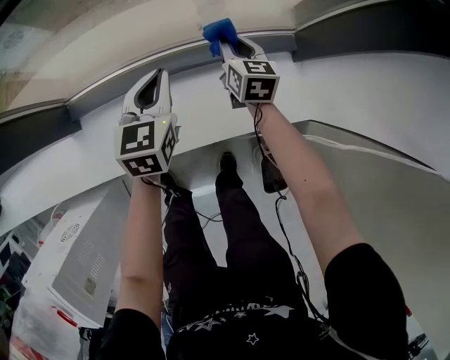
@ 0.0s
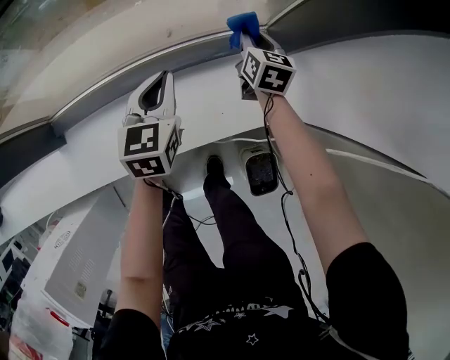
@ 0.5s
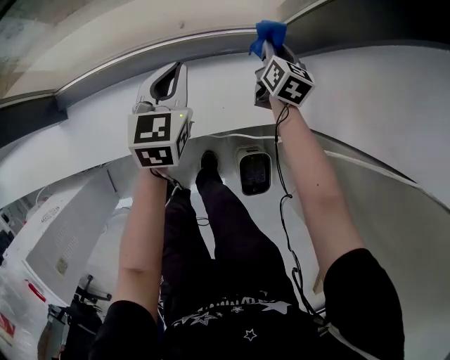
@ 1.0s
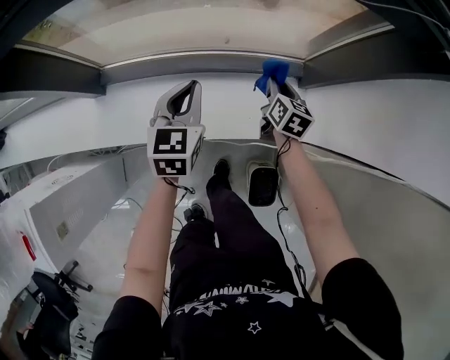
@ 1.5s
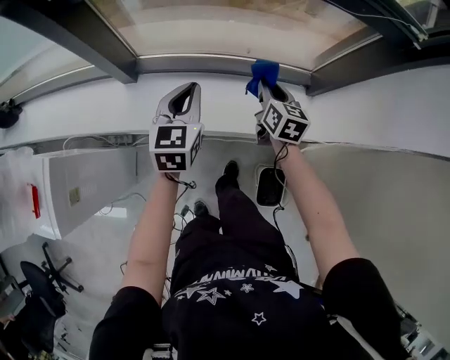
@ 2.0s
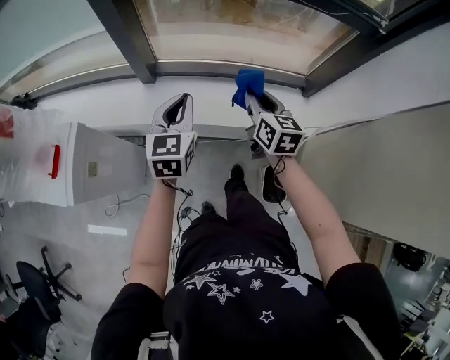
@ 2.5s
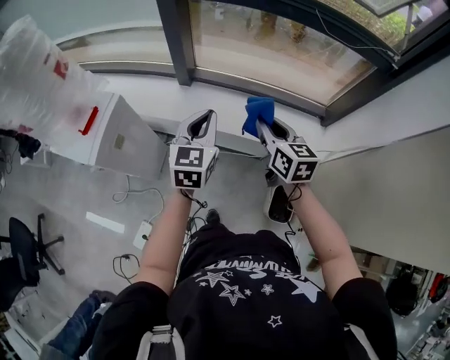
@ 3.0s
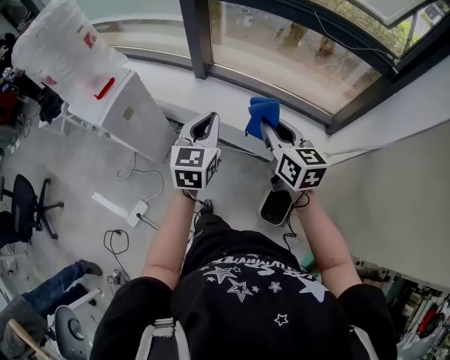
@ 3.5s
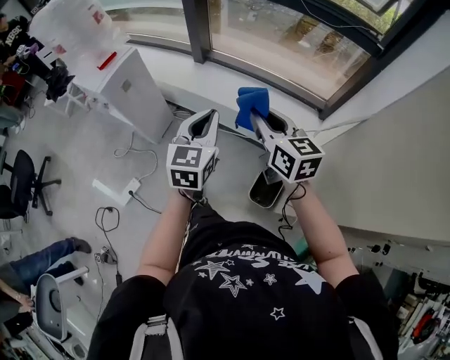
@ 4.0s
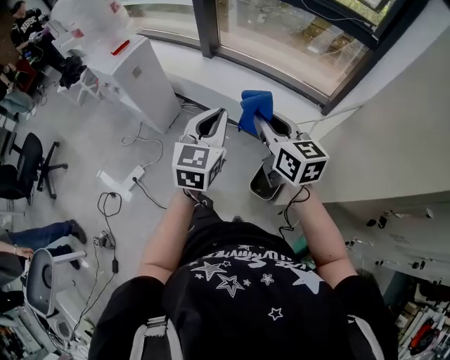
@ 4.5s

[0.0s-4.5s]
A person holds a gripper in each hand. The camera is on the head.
0.0s to 2.0s: Both grippers travel together backward and upward, approximately 25 cm. The right gripper reaches roughly 20 cm to the right, then returns.
2.0s to 4.5s: The two grippers travel together, roughly 50 cm. The left gripper swivels some 20 degrees. The right gripper rotates some 50 degrees.

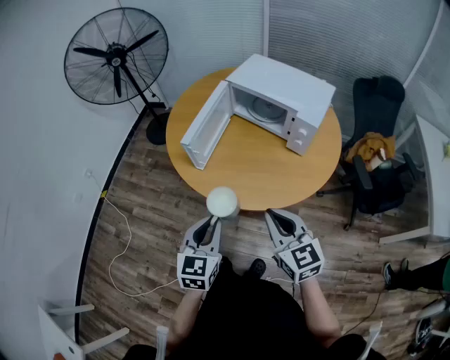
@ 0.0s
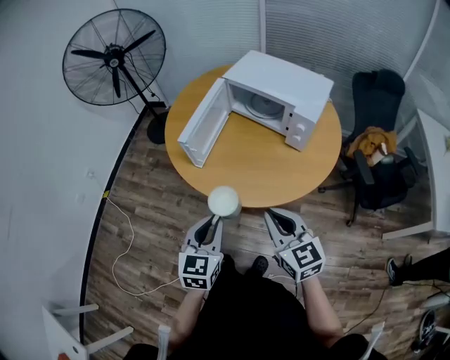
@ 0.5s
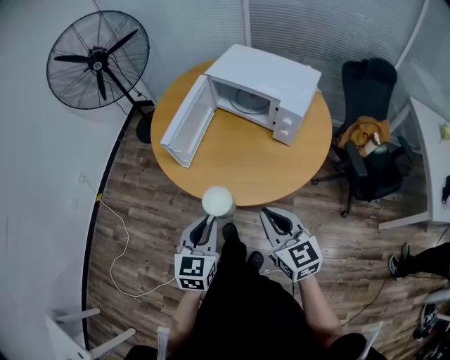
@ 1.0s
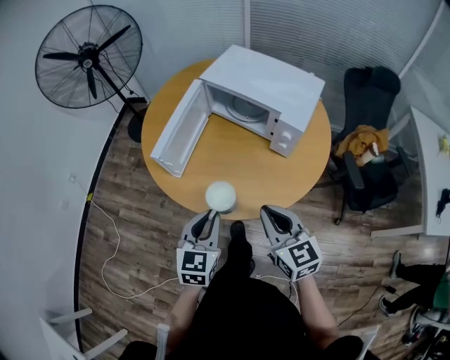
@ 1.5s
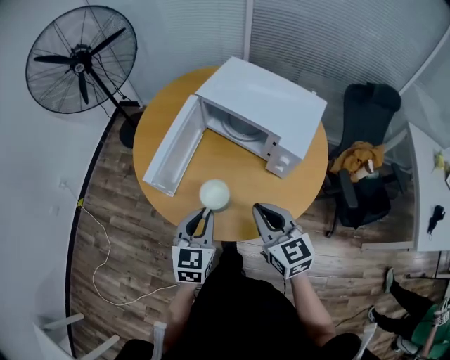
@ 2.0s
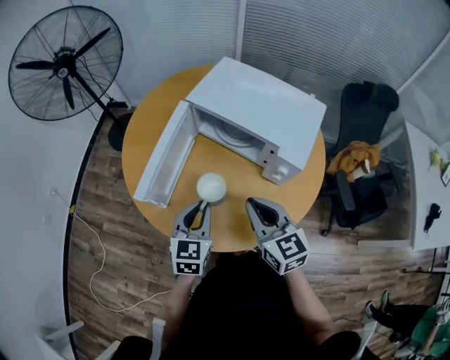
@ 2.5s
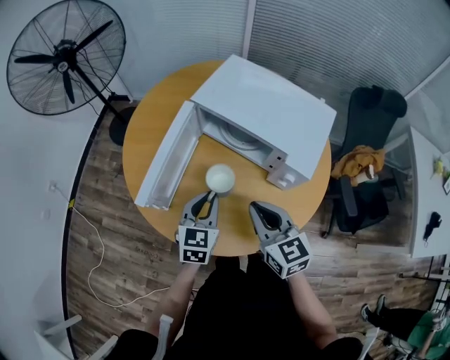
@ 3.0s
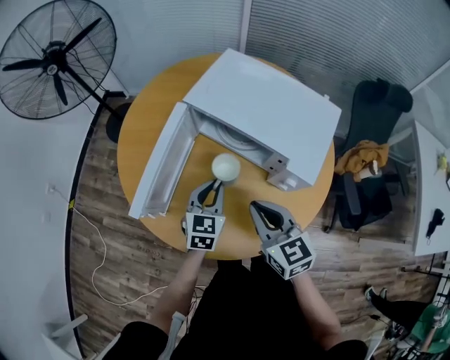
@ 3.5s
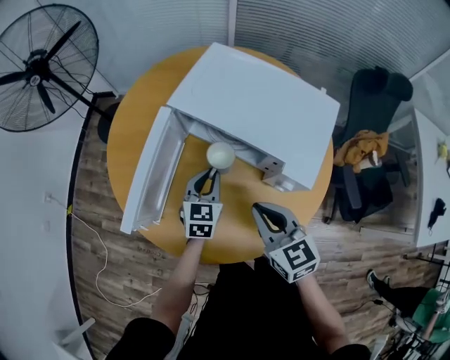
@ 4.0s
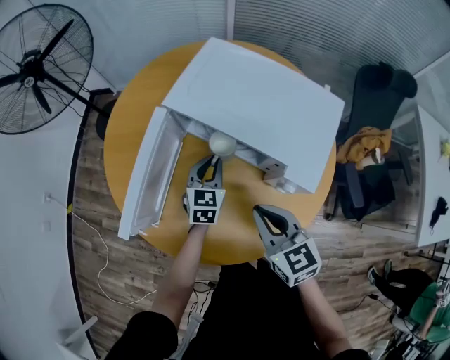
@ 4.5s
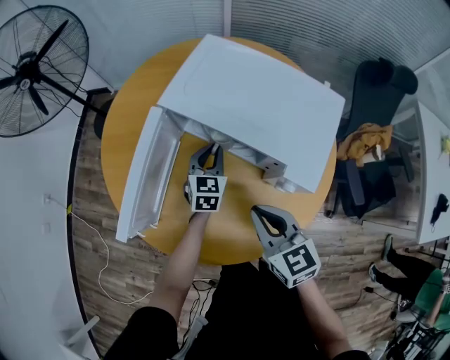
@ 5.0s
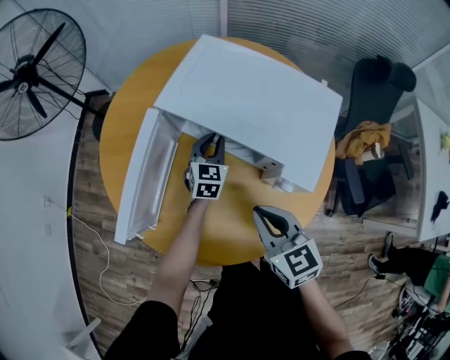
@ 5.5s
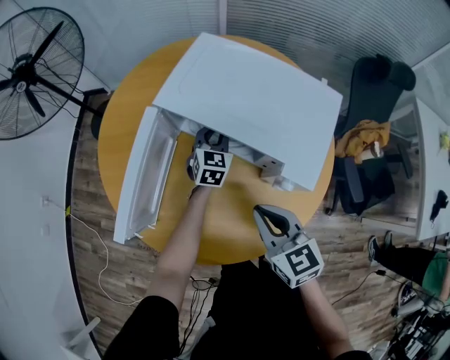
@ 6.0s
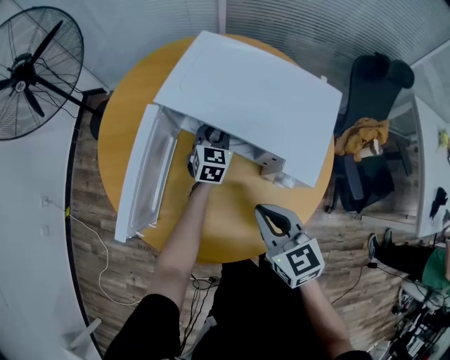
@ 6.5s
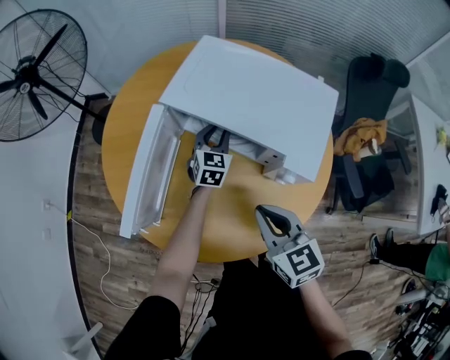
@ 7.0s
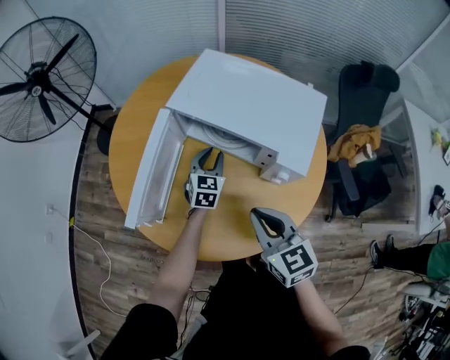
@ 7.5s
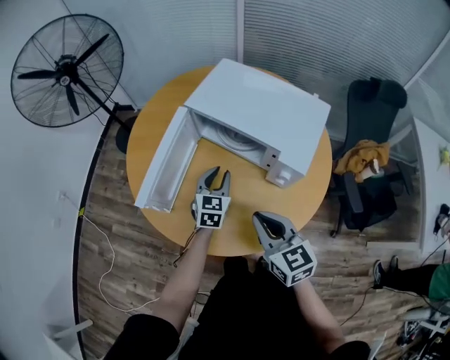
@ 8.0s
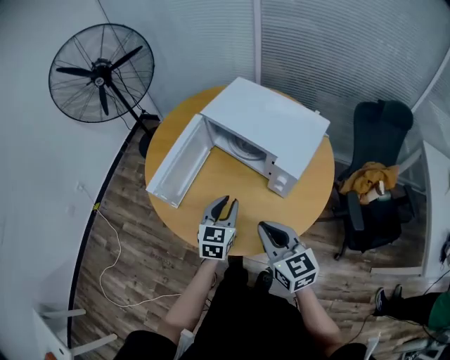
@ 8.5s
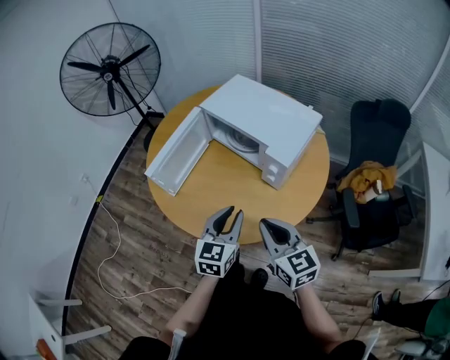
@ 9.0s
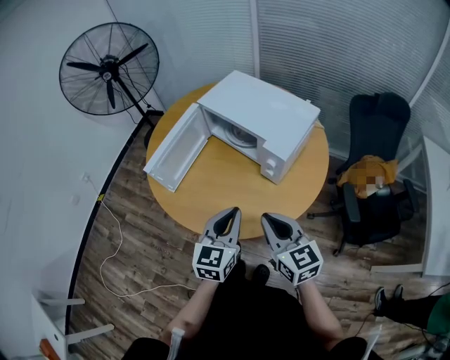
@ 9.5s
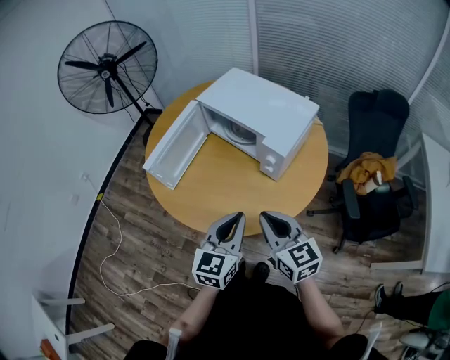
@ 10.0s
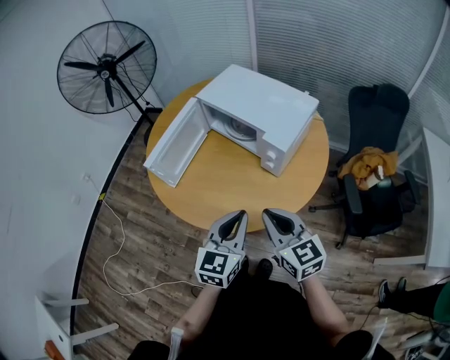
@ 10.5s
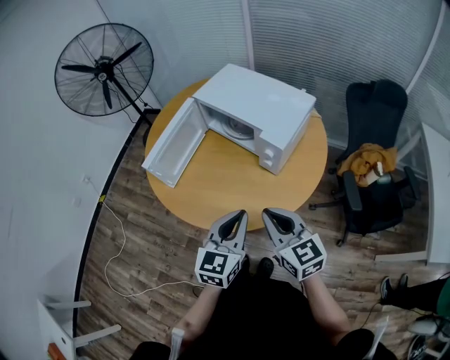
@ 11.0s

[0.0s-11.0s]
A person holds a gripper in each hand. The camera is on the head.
0.0s to 2.0s: Both grippers move forward and to the right, roughly 20 cm.
2.0s to 3.5s: The right gripper goes some 10 cm forward. The left gripper heads forward and downward, covering some 20 cm.
3.5s to 5.5s: The left gripper goes approximately 20 cm forward, to the right and downward.
5.5s to 7.5s: The left gripper moves backward, about 5 cm, while the right gripper ends up some 5 cm from where it was.
7.5s to 9.0s: The right gripper goes about 15 cm backward and to the right, while the left gripper shifts roughly 35 cm backward and upward.
9.0s to 11.0s: The left gripper travels backward by approximately 5 cm.

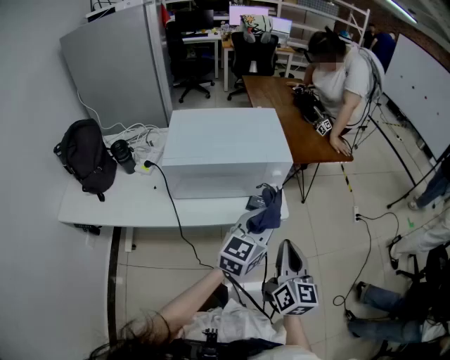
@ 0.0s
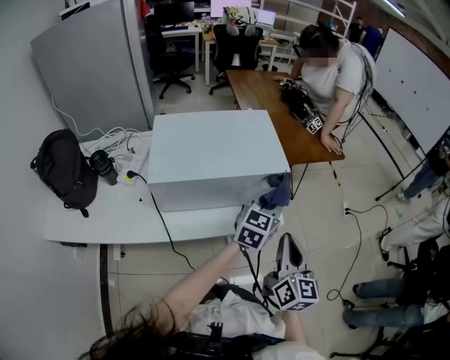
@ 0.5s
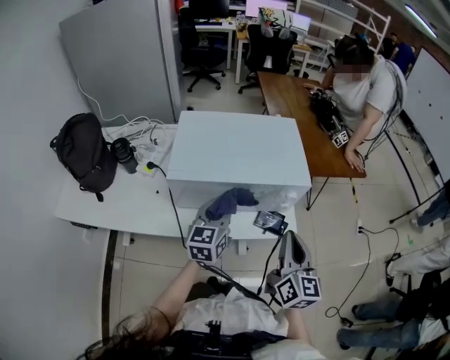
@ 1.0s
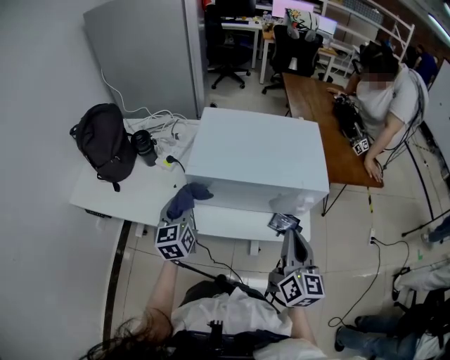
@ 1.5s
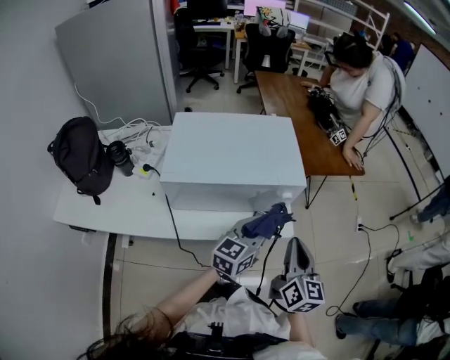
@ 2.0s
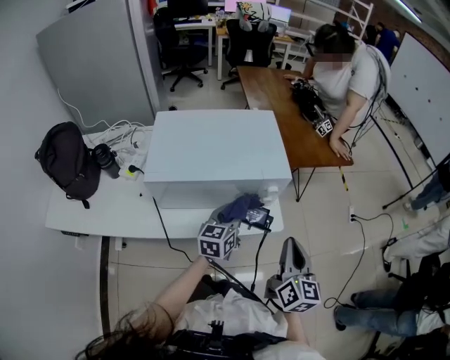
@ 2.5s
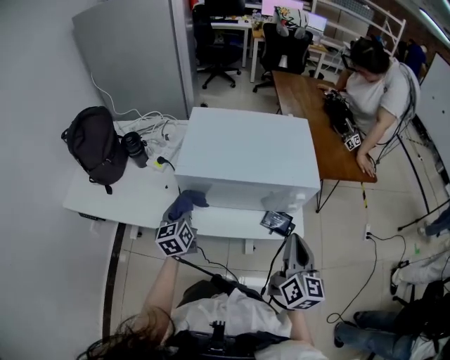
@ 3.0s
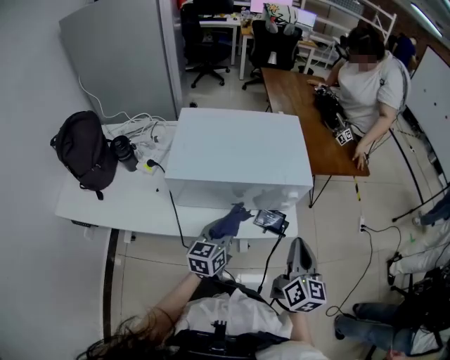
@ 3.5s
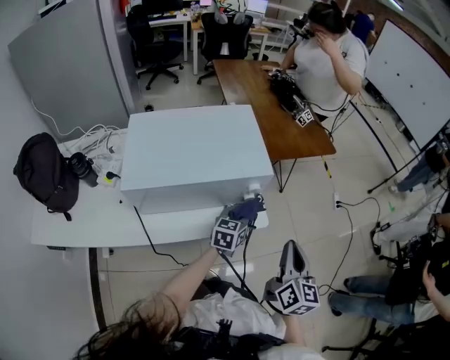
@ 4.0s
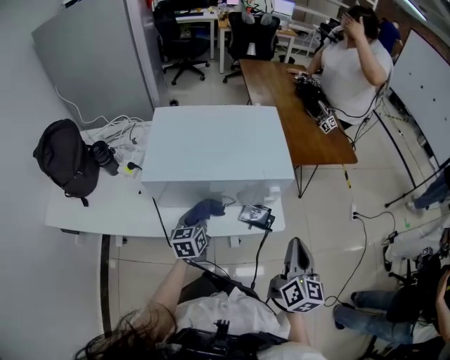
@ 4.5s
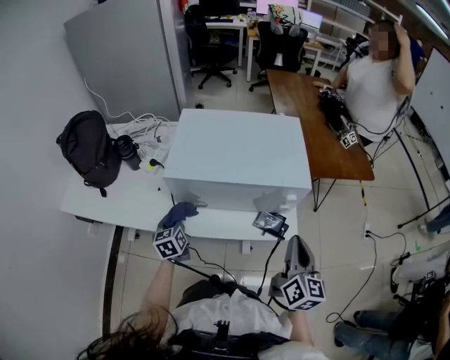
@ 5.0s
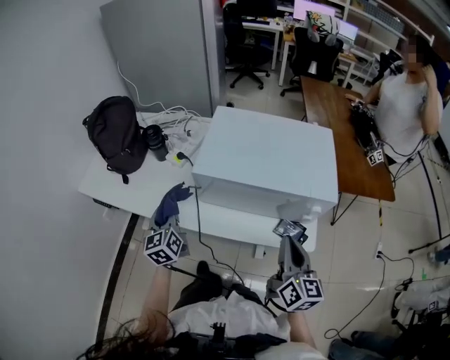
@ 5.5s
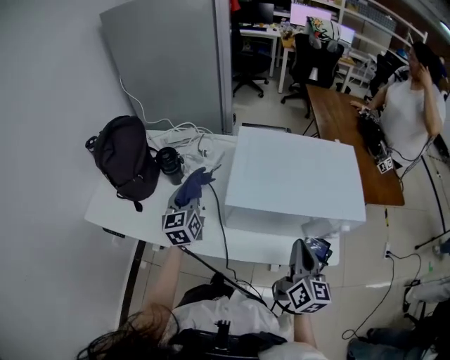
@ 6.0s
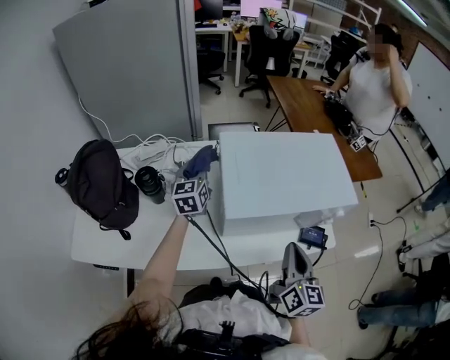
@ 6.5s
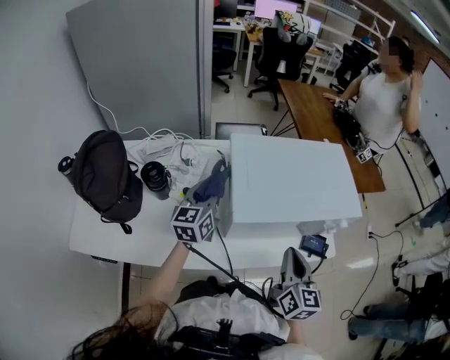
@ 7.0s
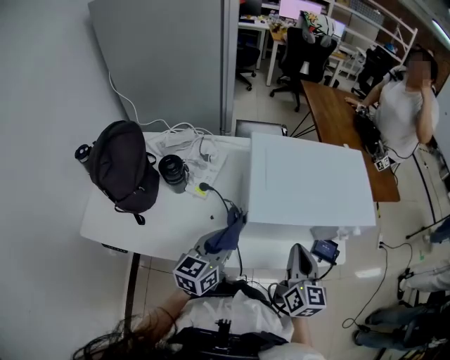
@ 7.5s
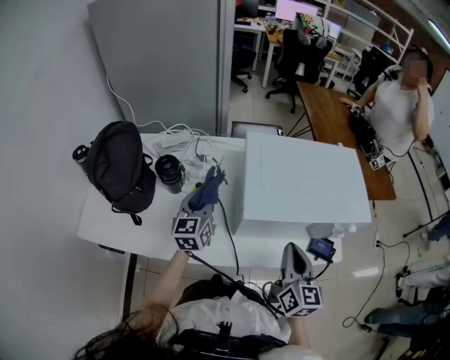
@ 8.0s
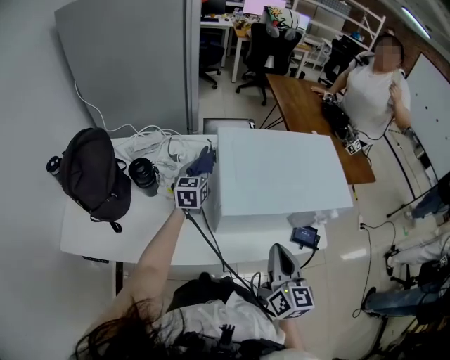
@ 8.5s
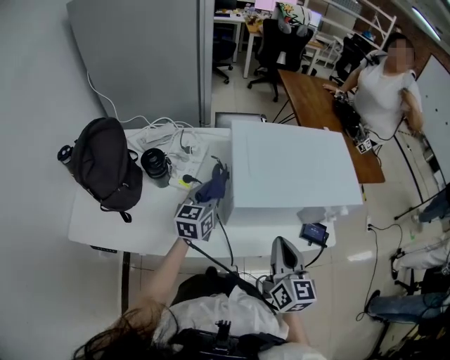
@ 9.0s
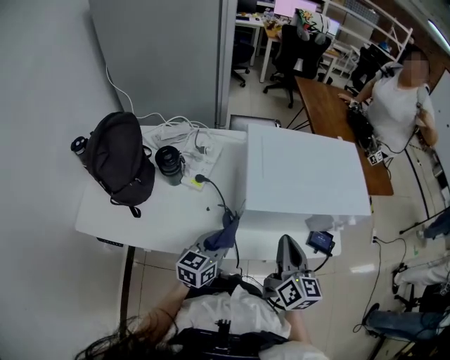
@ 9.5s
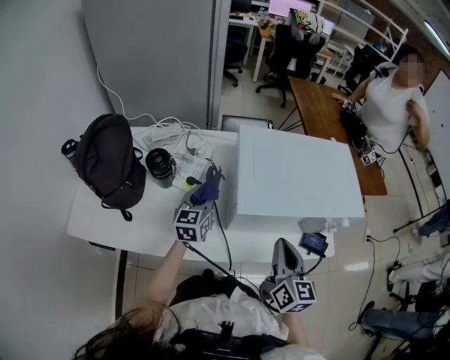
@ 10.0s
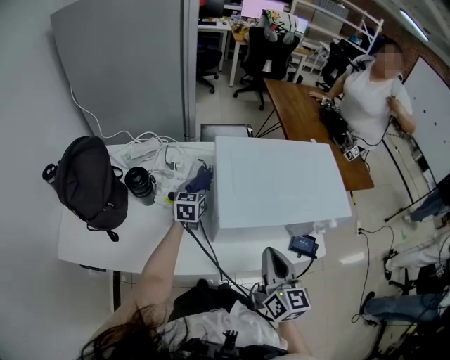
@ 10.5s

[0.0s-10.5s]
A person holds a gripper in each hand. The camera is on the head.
0.0s to 2.0s: The right gripper shifts by approximately 10 cm.
2.0s to 4.0s: The right gripper ends up some 10 cm from where it was, while the left gripper moves downward, about 10 cm.
4.0s to 6.5s: The right gripper ends up roughly 30 cm from where it was. Meanwhile the left gripper shifts by roughly 50 cm, and changes its angle by approximately 40 degrees.
6.5s to 8.5s: The left gripper shifts approximately 5 cm downward, and goes backward and returns, about 25 cm each way.
8.5s to 10.5s: The left gripper shifts about 5 cm downward, and travels backward and back again, approximately 25 cm each way.

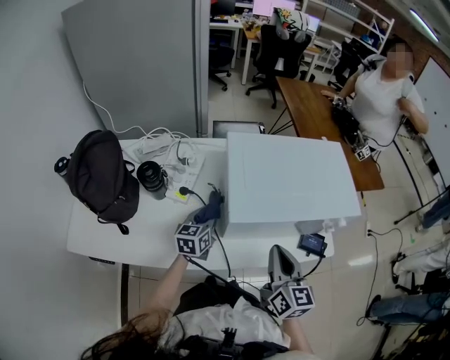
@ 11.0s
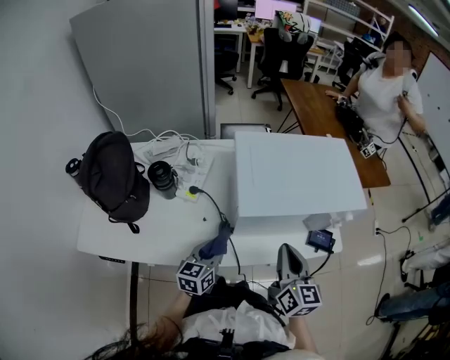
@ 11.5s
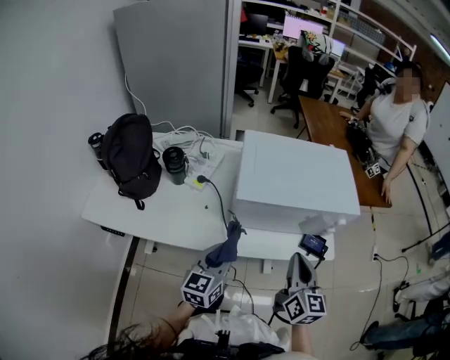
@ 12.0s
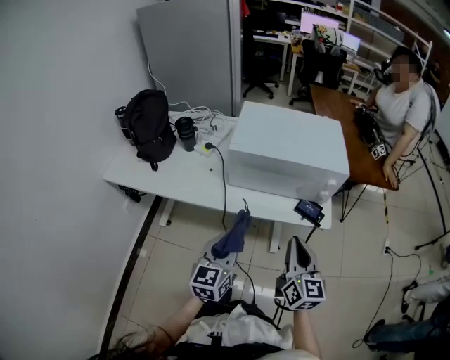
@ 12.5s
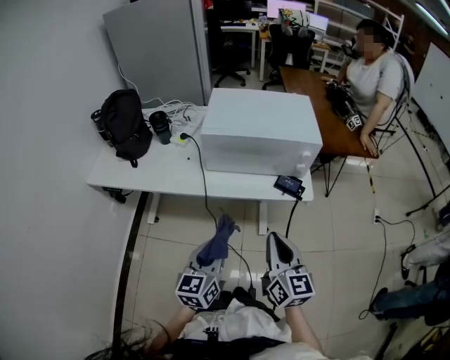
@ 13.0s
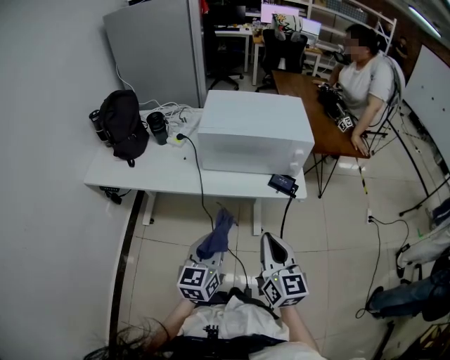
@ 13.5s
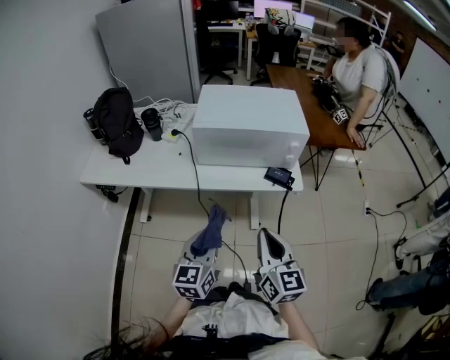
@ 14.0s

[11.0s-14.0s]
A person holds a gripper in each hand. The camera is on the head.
11.0s to 12.5s: The left gripper moves backward and to the right, some 40 cm, and swivels some 20 degrees; the right gripper goes approximately 20 cm backward and to the right.
12.5s to 14.0s: Both grippers travel together backward, about 10 cm.
